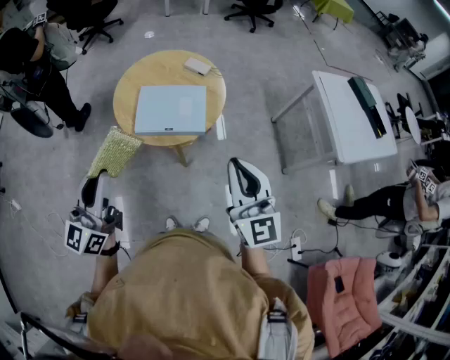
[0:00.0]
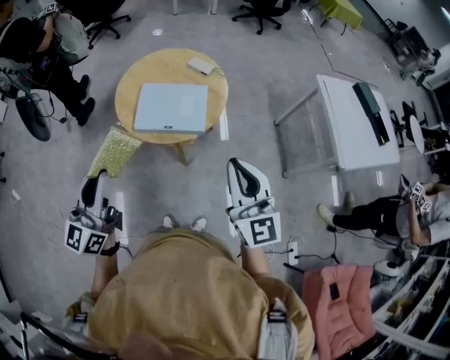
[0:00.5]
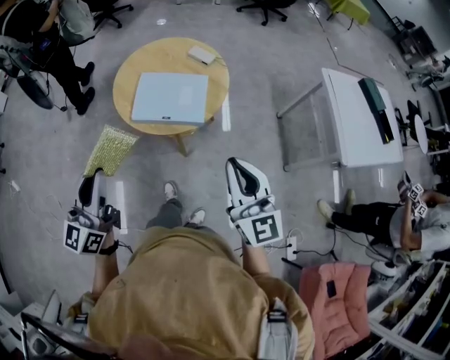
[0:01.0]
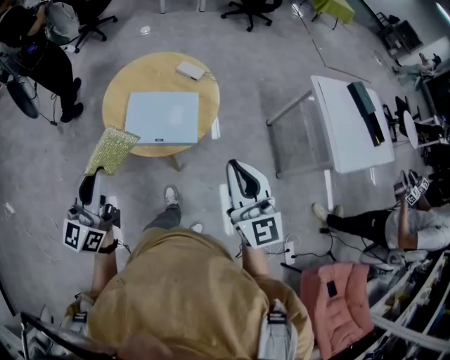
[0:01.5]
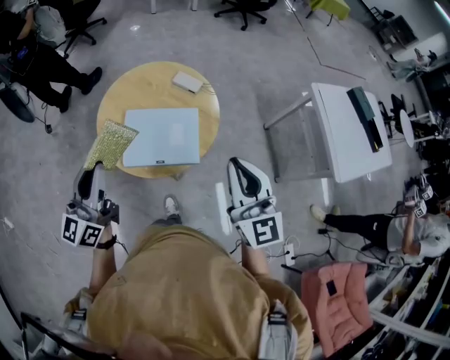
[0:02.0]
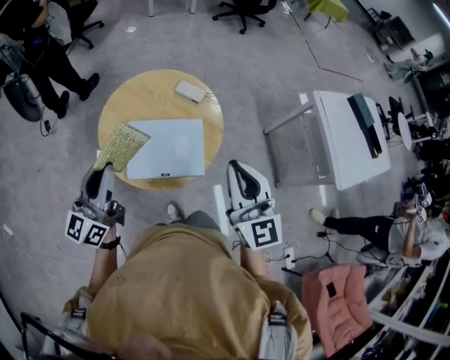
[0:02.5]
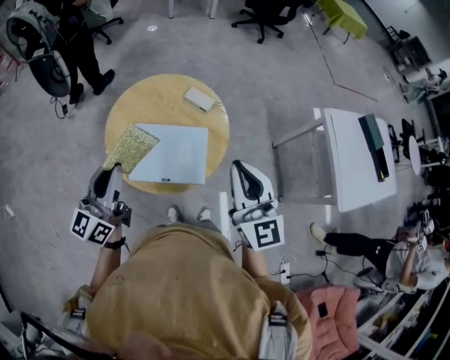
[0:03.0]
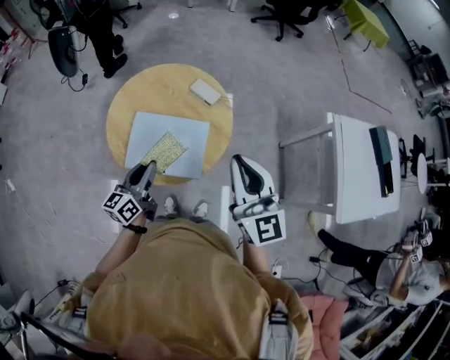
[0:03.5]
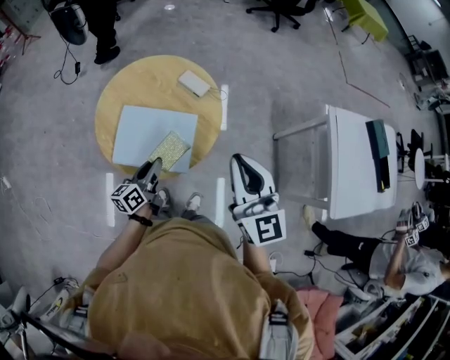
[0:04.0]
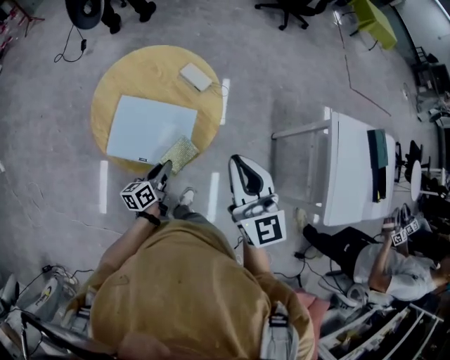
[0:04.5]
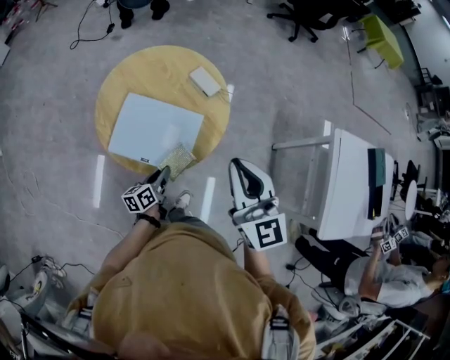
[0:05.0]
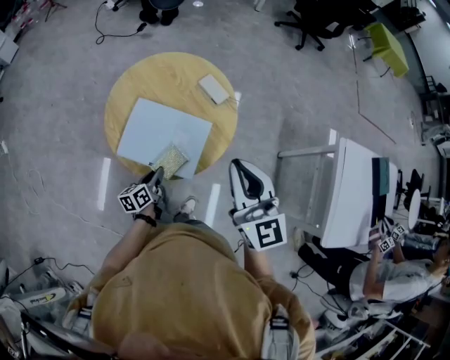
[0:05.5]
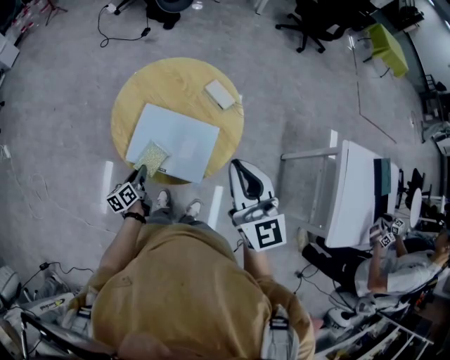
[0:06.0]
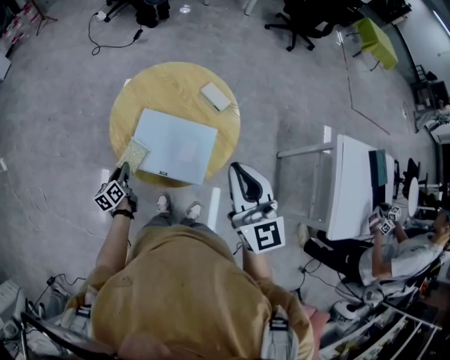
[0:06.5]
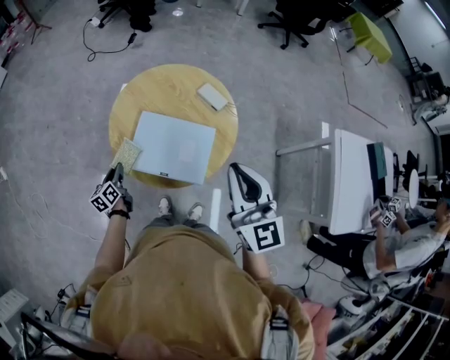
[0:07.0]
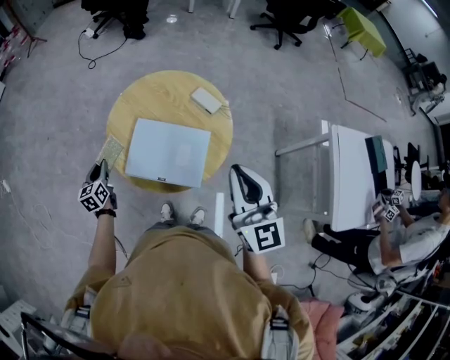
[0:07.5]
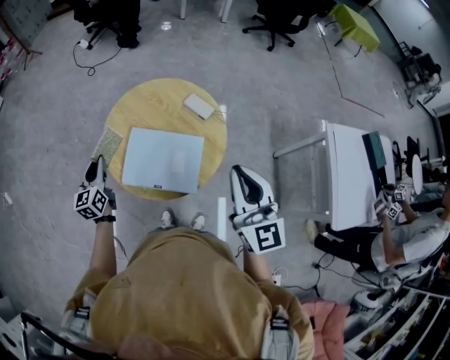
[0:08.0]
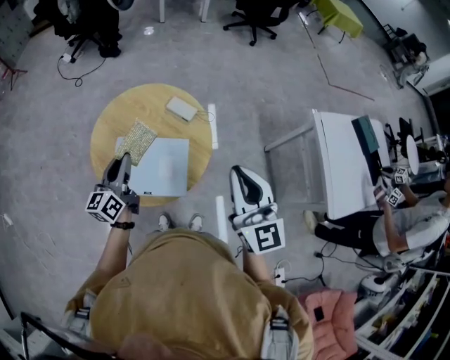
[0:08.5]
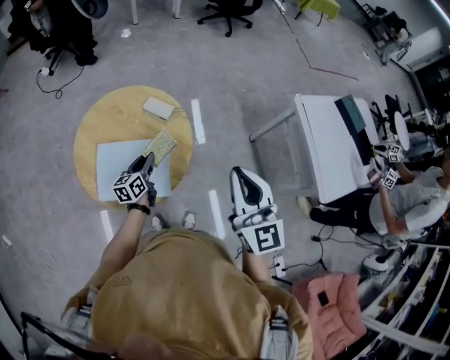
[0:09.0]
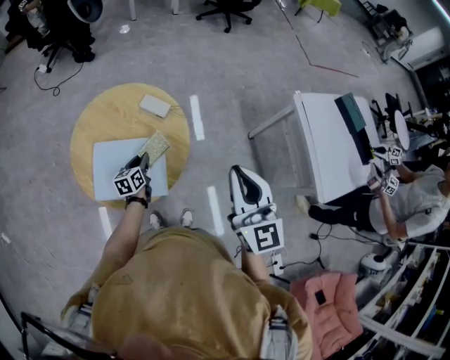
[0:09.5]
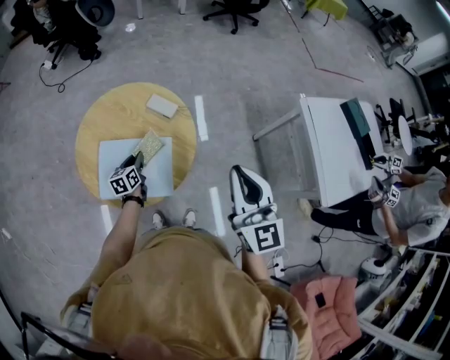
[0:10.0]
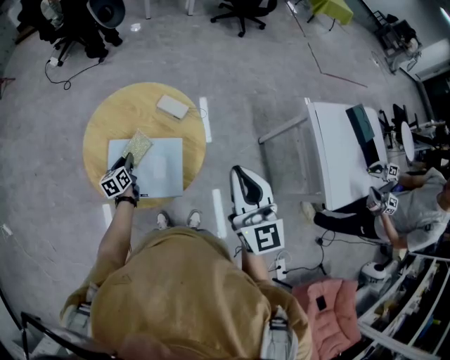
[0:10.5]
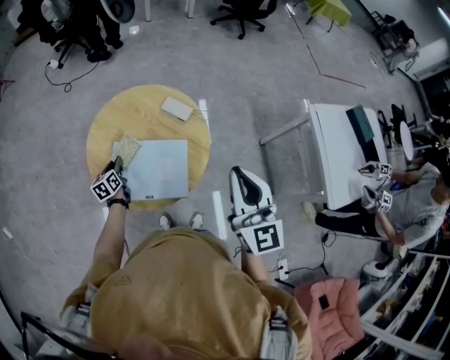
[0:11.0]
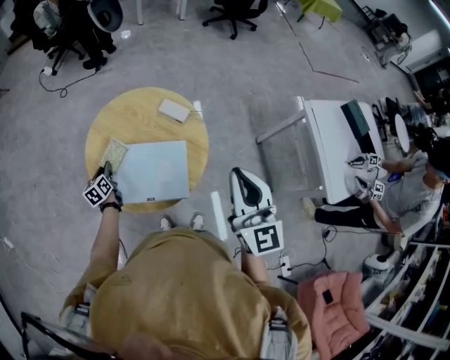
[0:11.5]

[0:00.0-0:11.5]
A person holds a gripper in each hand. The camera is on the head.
0:00.0 to 0:02.0: Both grippers travel together forward, approximately 20 cm.
0:02.0 to 0:04.0: The left gripper goes some 30 cm downward and to the right, and changes its angle by approximately 40 degrees; the right gripper shifts roughly 15 cm forward and to the right.
0:04.0 to 0:06.0: The left gripper goes roughly 20 cm to the left and downward, and changes its angle by some 30 degrees. Meanwhile the right gripper goes roughly 10 cm to the left.
0:06.0 to 0:07.5: The left gripper goes about 20 cm to the left, forward and upward, and swivels some 30 degrees.
0:07.5 to 0:09.5: The right gripper moves roughly 15 cm. The left gripper goes upward and returns, roughly 15 cm each way, and swivels roughly 30 degrees.
0:09.5 to 0:11.5: The left gripper is displaced to the left by approximately 25 cm, while the right gripper travels to the left by roughly 10 cm.

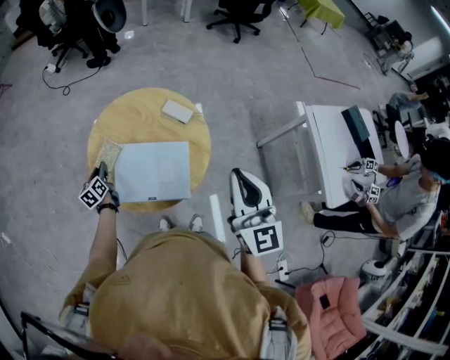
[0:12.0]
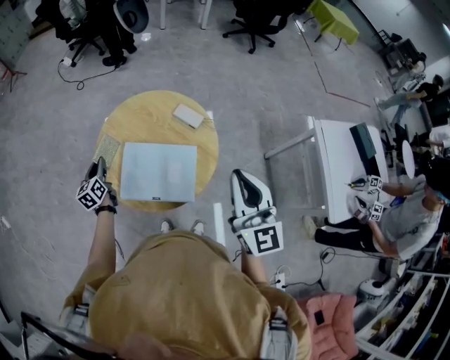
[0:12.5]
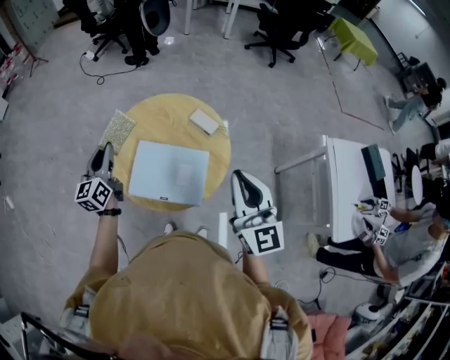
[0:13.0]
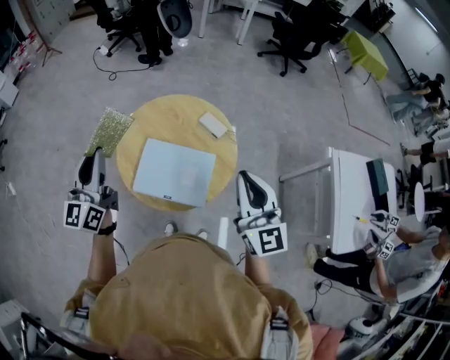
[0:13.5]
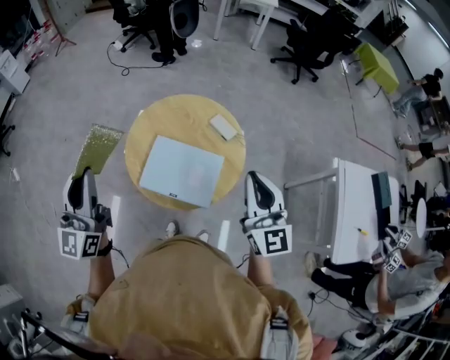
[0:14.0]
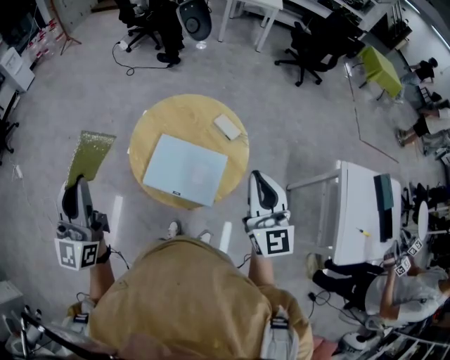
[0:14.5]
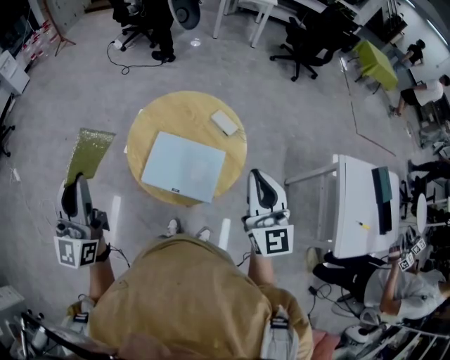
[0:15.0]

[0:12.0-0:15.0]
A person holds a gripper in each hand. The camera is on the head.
0:12.0 to 0:13.5: The left gripper travels upward by about 35 cm, and points its fingers about 40 degrees further upward.
0:13.5 to 0:15.0: The left gripper travels backward and upward by roughly 15 cm.

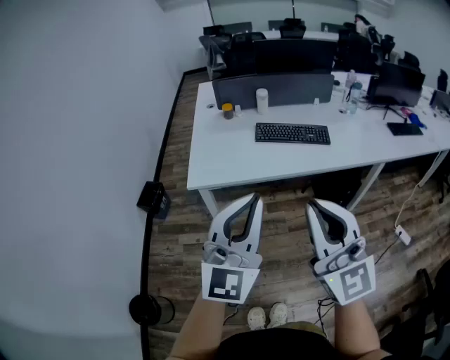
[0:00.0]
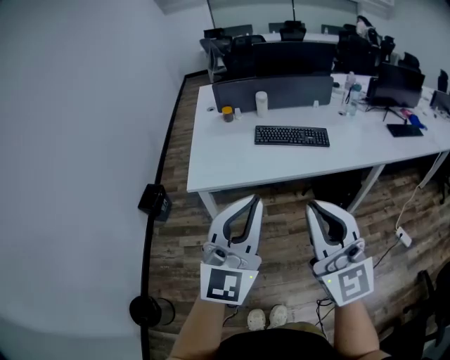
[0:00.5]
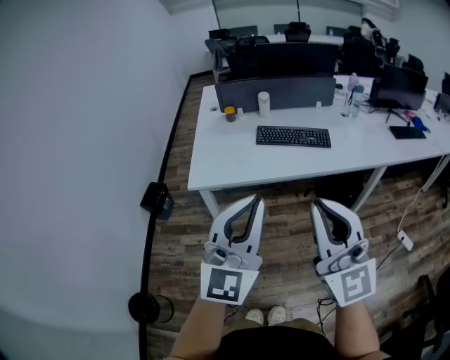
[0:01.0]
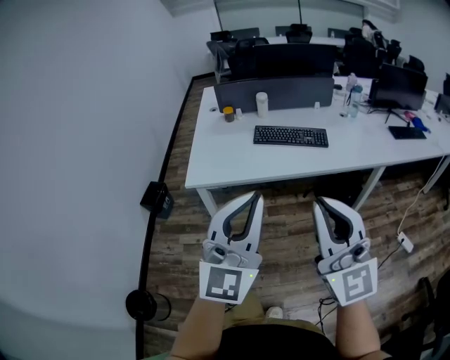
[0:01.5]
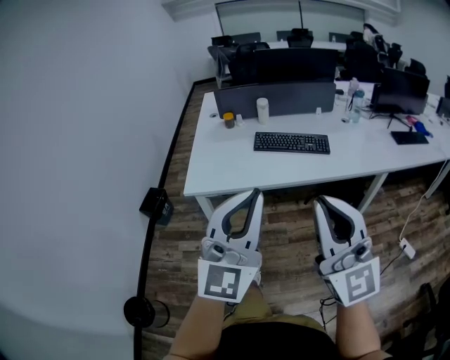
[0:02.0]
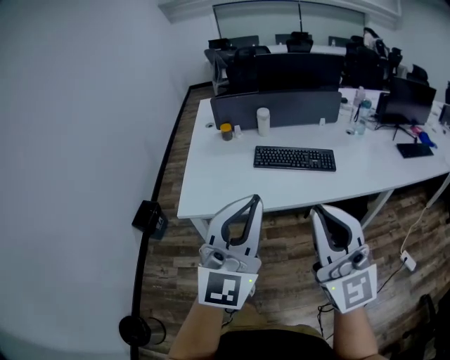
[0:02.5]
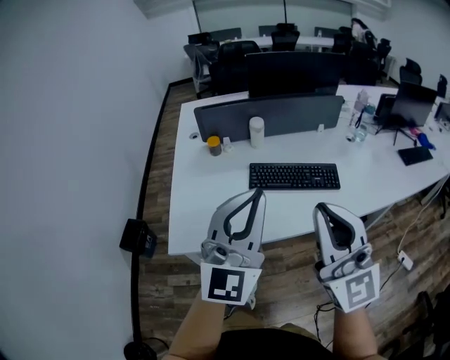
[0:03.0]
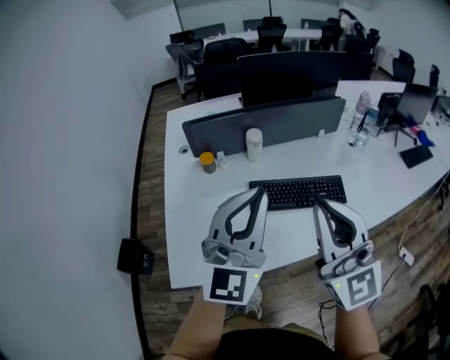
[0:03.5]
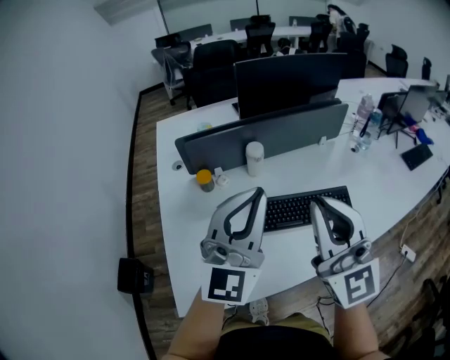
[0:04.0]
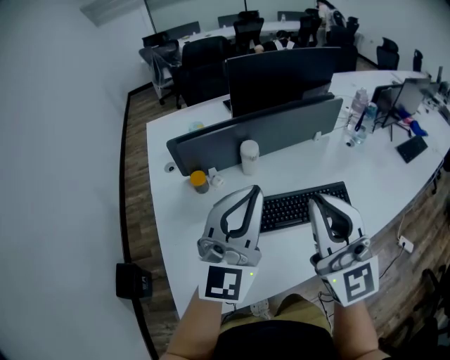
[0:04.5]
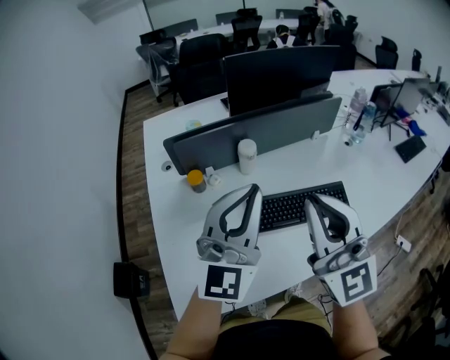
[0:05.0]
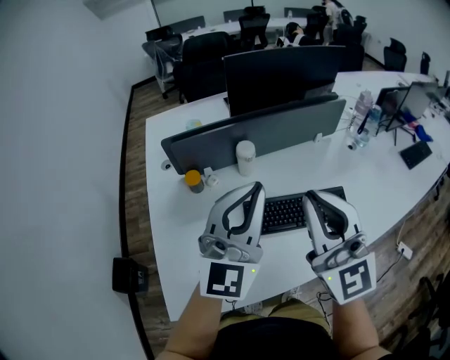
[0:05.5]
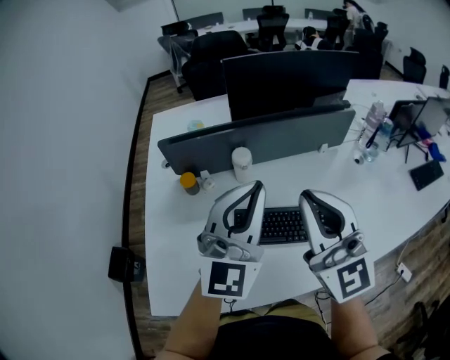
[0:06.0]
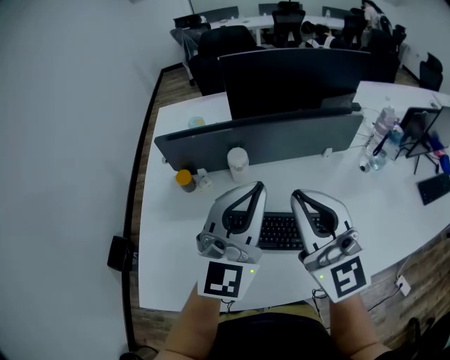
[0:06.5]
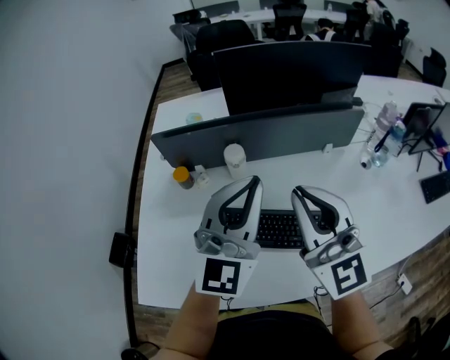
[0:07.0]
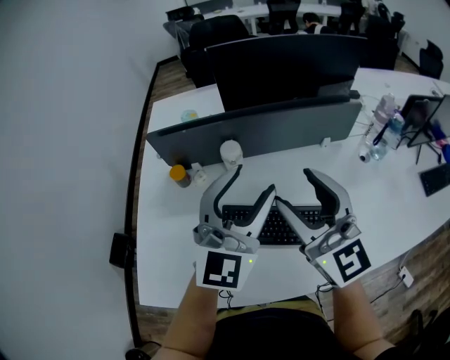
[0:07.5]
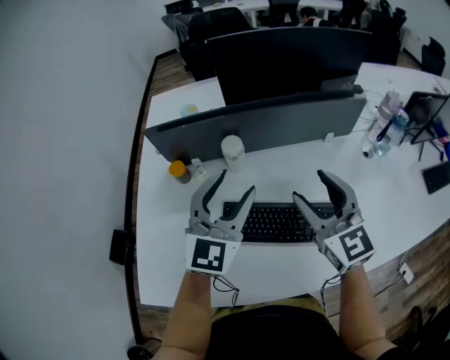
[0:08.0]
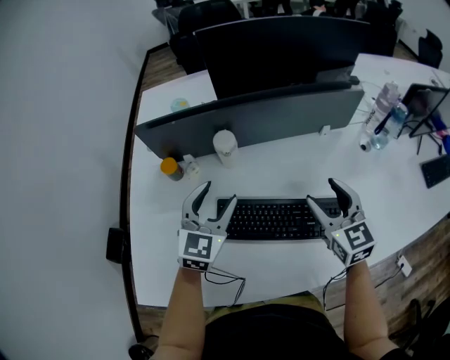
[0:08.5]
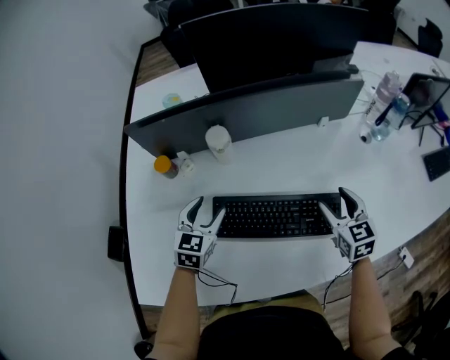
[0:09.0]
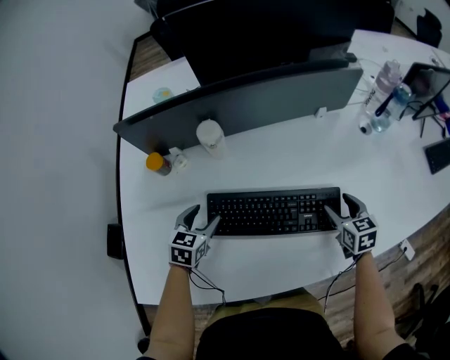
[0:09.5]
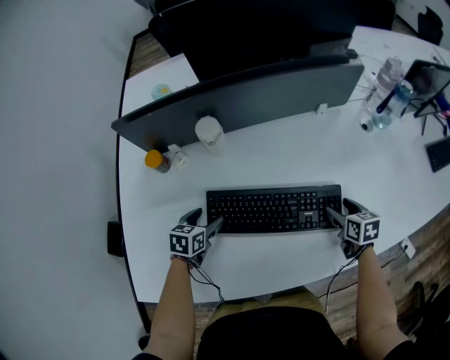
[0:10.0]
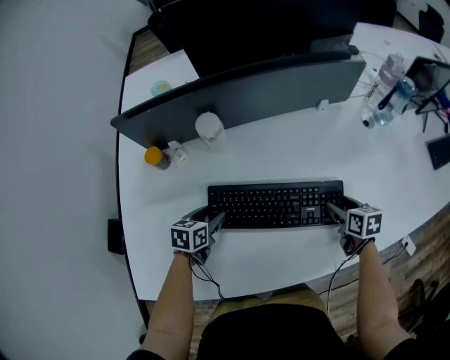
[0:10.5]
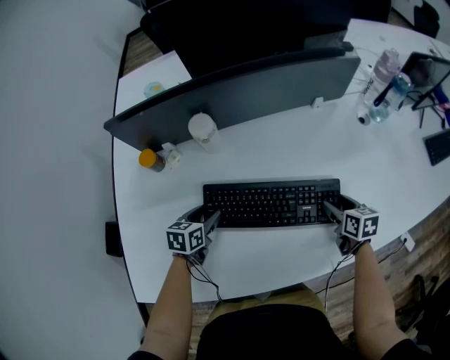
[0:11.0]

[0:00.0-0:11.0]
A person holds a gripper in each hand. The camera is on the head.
0:00.0 to 0:02.0: Both grippers travel together to the right, some 5 cm.
0:02.0 to 0:03.5: The pair of grippers is taken forward, some 40 cm.
0:03.5 to 0:05.5: Both grippers travel together forward, some 15 cm.
0:05.5 to 0:07.5: The right gripper moves forward and to the right, approximately 15 cm, turns by approximately 20 degrees, and opens up. The left gripper travels to the right and forward by roughly 15 cm, and opens its fingers.
0:07.5 to 0:09.0: The left gripper shifts roughly 30 cm downward and to the left, and angles its fingers downward, by some 40 degrees. Meanwhile the right gripper moves downward and to the right, approximately 30 cm, and tips its fingers downward by approximately 40 degrees.
0:09.0 to 0:11.0: The right gripper shifts approximately 15 cm downward and to the right, and swivels roughly 30 degrees; the left gripper shifts about 10 cm downward, and changes its angle by approximately 30 degrees.

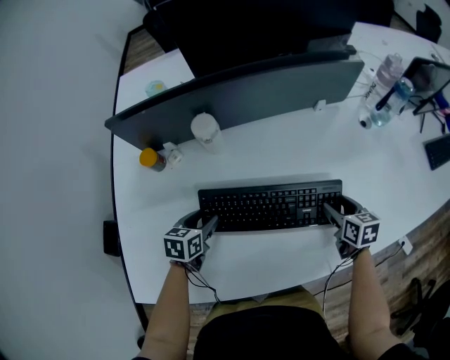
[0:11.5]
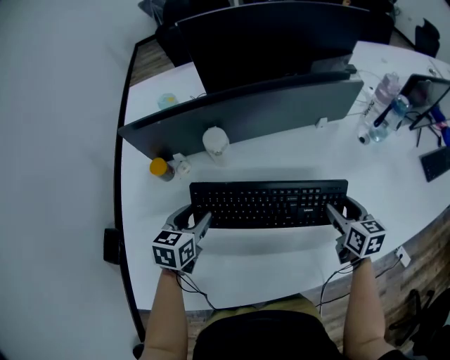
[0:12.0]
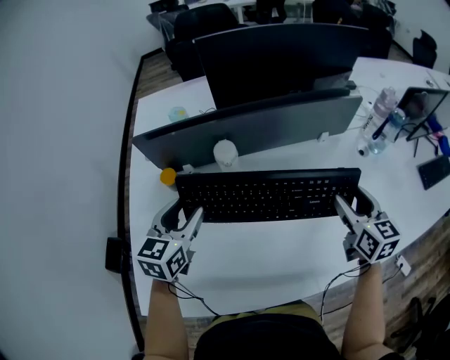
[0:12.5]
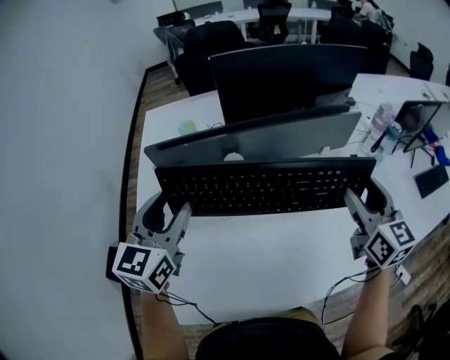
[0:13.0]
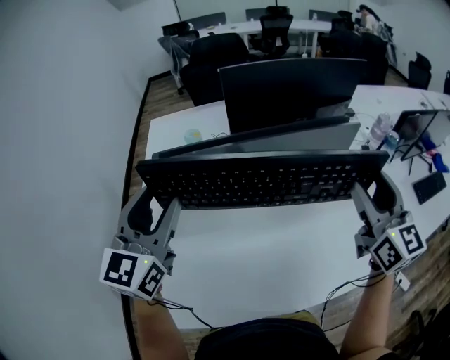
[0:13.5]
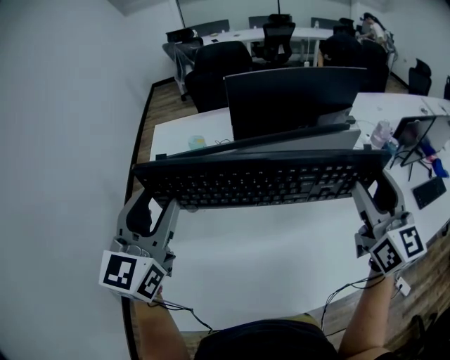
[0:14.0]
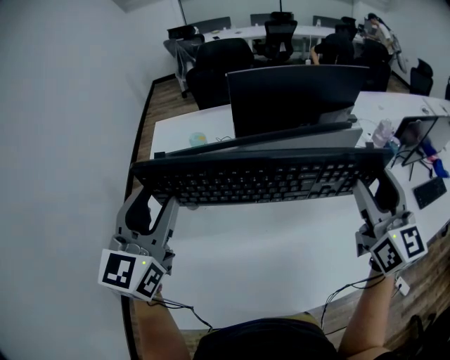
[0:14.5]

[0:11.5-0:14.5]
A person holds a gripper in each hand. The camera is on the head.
0:11.5 to 0:13.0: Both grippers travel together upward, approximately 35 cm. The right gripper tips its fingers upward by approximately 40 degrees. The left gripper tips its fingers upward by some 40 degrees.
0:13.0 to 0:14.5: The two grippers go approximately 10 cm upward.
